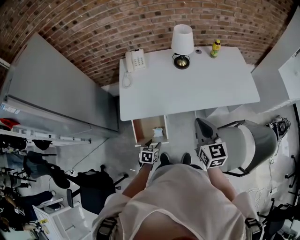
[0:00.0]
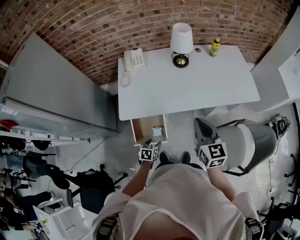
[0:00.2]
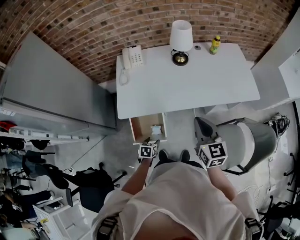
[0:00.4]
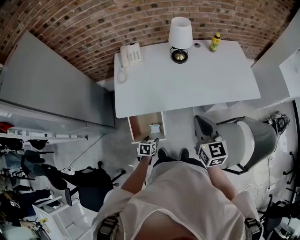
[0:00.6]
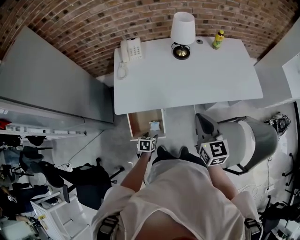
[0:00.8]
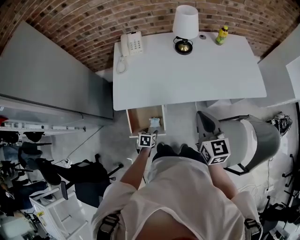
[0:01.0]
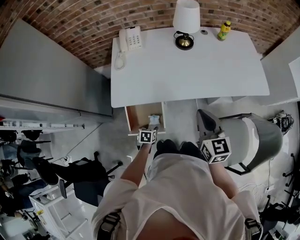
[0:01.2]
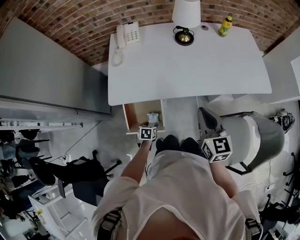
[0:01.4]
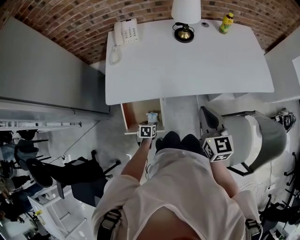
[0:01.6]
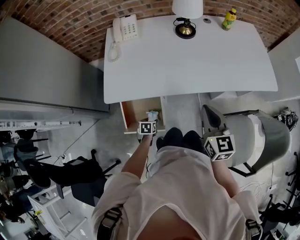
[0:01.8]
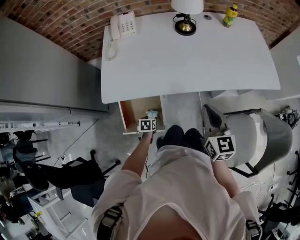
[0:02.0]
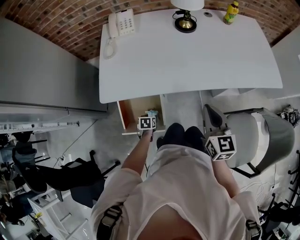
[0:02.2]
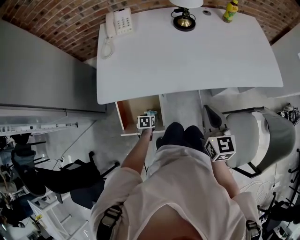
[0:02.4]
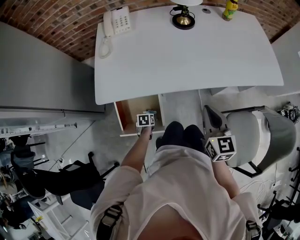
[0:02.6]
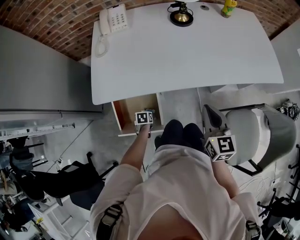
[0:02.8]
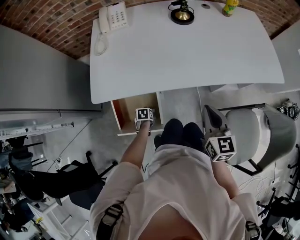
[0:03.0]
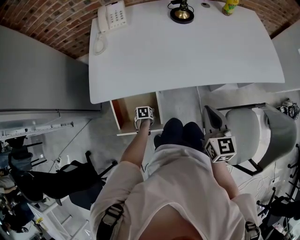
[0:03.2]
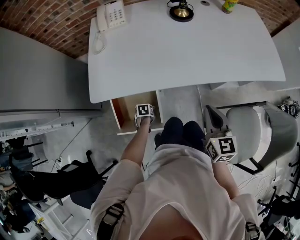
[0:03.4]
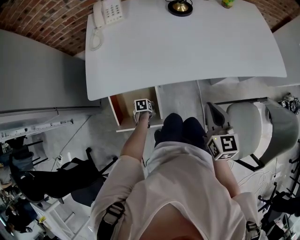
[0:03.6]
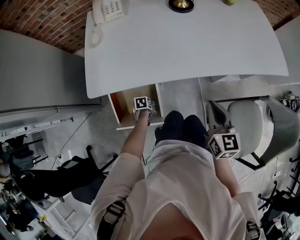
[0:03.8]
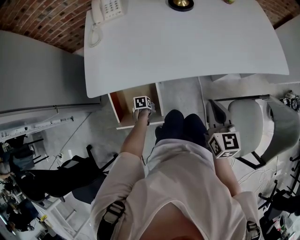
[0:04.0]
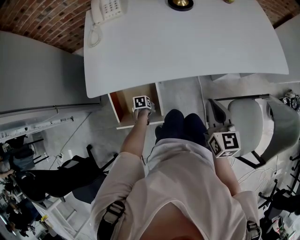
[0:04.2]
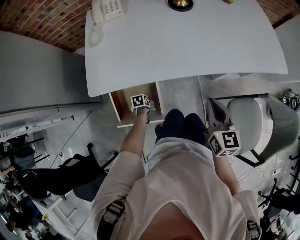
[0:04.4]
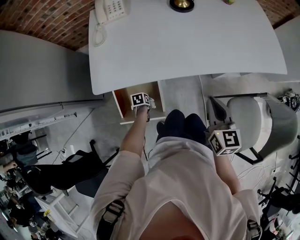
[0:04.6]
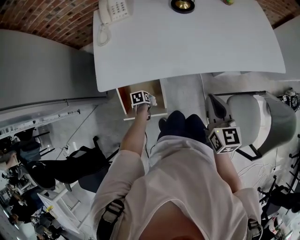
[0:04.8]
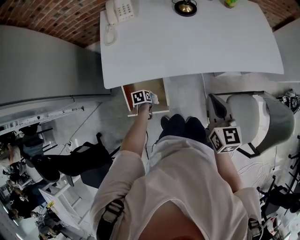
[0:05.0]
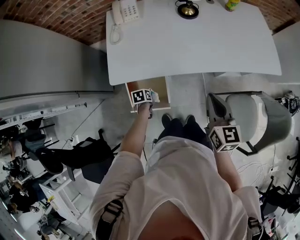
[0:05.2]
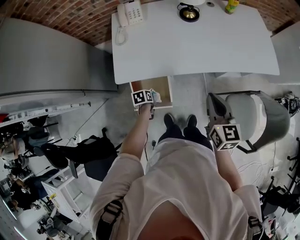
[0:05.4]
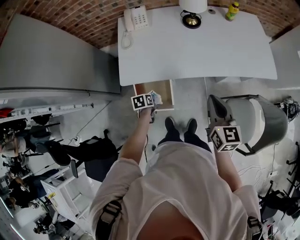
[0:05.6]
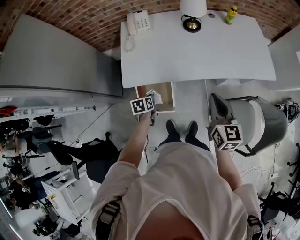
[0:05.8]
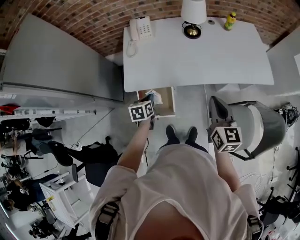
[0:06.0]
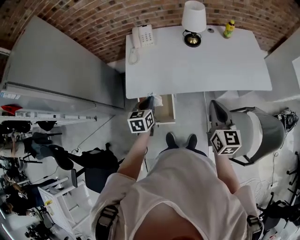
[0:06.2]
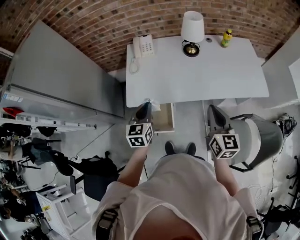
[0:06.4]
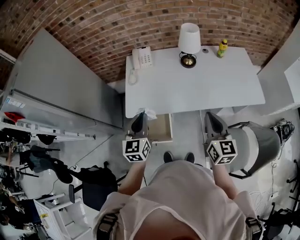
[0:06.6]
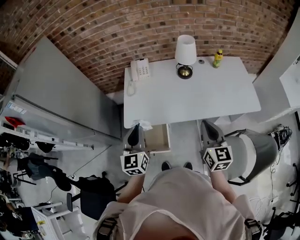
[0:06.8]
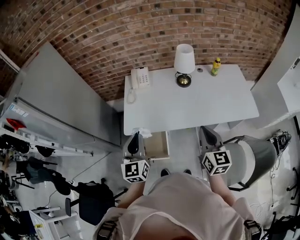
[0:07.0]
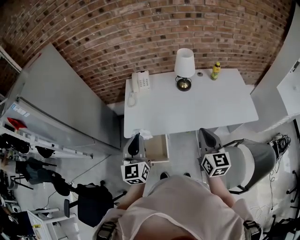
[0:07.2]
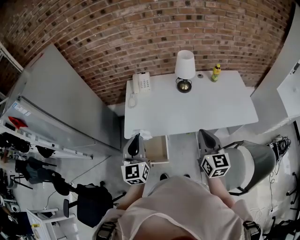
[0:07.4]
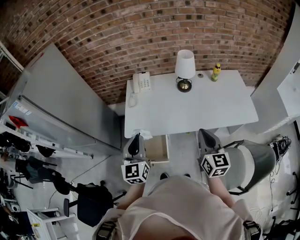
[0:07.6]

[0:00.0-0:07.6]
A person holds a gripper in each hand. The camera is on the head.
0:00.0 to 0:01.6: The grippers both shift downward by roughly 20 cm.
0:01.6 to 0:03.0: The grippers both shift downward by approximately 15 cm.
0:03.0 to 0:04.6: The left gripper closes its fingers.
0:04.6 to 0:06.0: The left gripper moves upward, approximately 40 cm, and swivels about 30 degrees; the right gripper is displaced upward by roughly 25 cm.
0:06.0 to 0:07.6: The right gripper travels upward by about 5 cm. The left gripper travels upward by some 25 cm, and angles its fingers upward, by roughly 40 degrees.

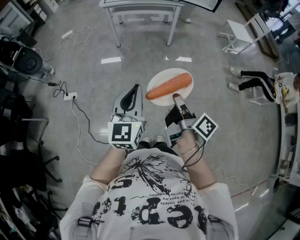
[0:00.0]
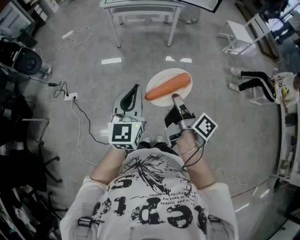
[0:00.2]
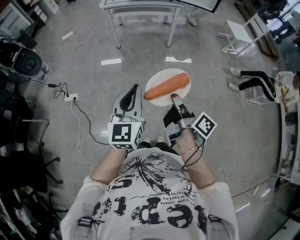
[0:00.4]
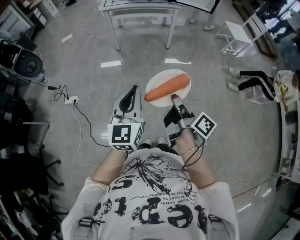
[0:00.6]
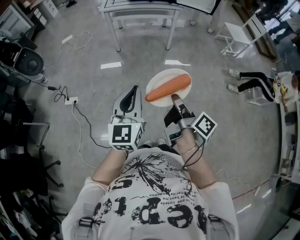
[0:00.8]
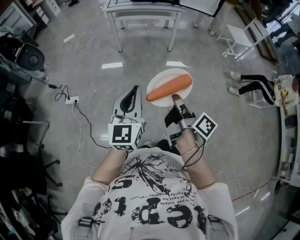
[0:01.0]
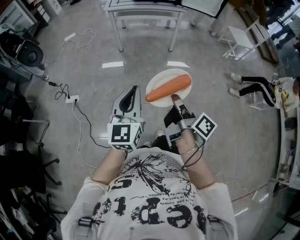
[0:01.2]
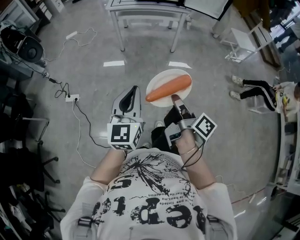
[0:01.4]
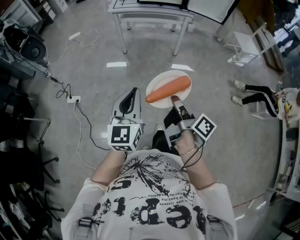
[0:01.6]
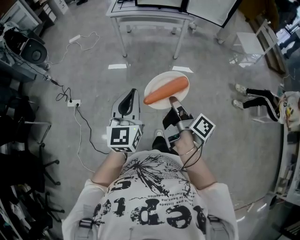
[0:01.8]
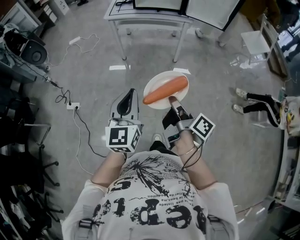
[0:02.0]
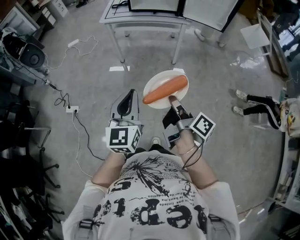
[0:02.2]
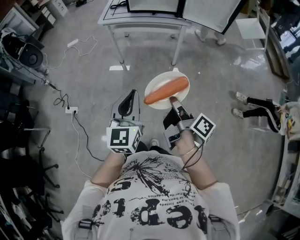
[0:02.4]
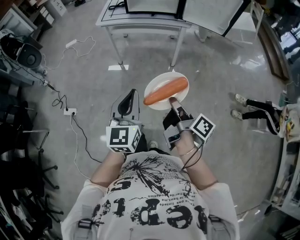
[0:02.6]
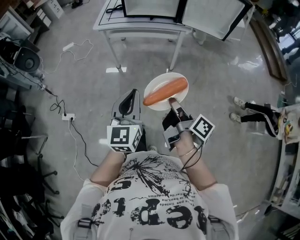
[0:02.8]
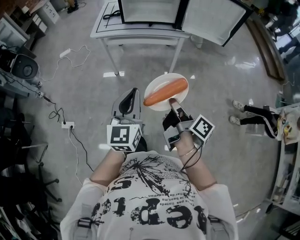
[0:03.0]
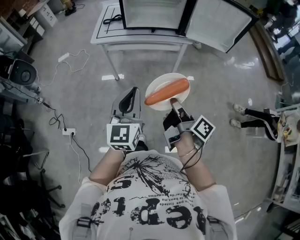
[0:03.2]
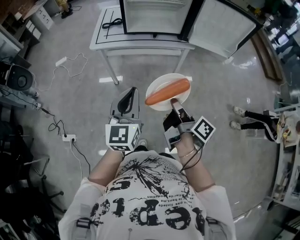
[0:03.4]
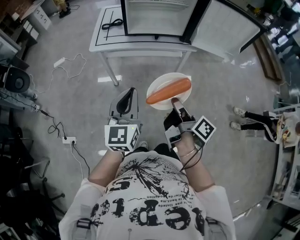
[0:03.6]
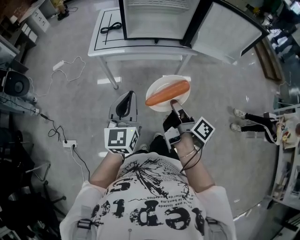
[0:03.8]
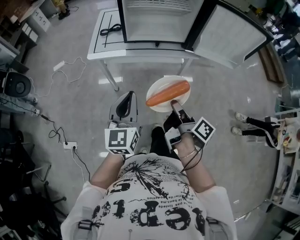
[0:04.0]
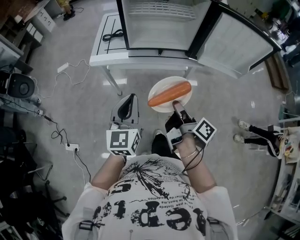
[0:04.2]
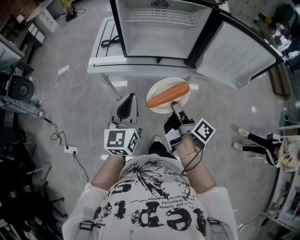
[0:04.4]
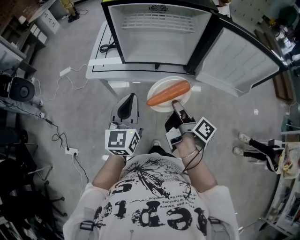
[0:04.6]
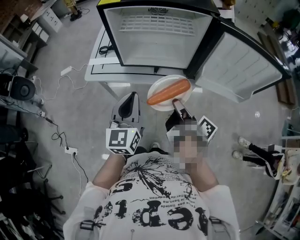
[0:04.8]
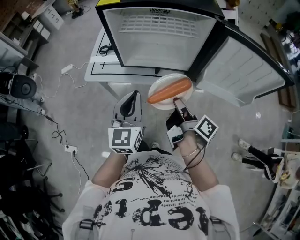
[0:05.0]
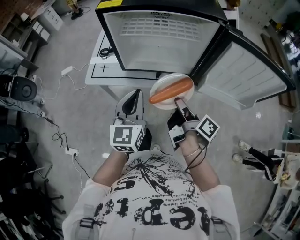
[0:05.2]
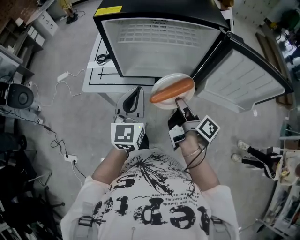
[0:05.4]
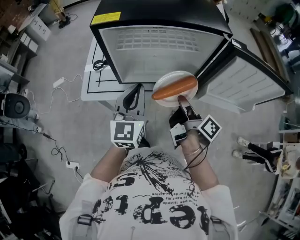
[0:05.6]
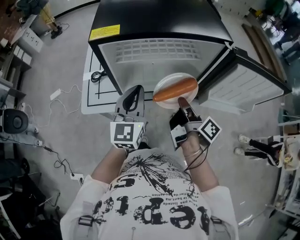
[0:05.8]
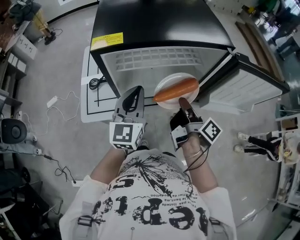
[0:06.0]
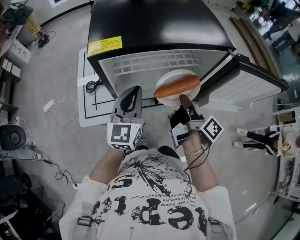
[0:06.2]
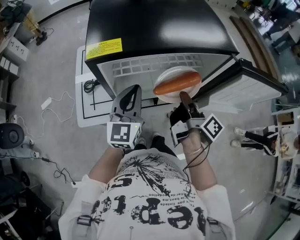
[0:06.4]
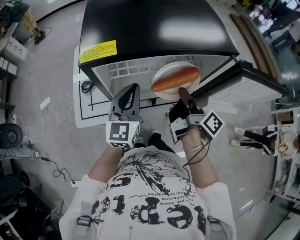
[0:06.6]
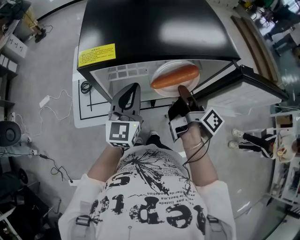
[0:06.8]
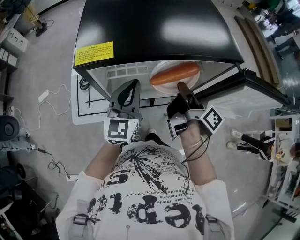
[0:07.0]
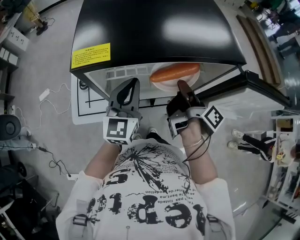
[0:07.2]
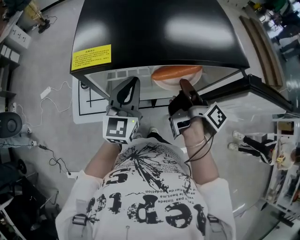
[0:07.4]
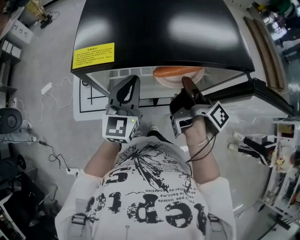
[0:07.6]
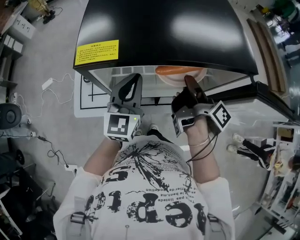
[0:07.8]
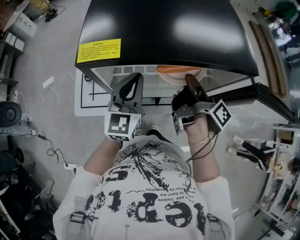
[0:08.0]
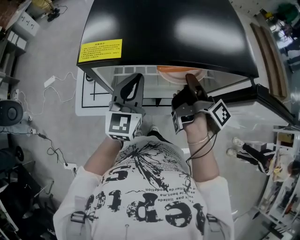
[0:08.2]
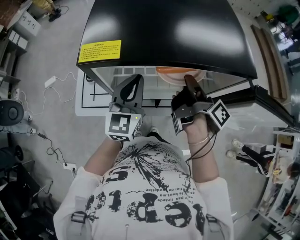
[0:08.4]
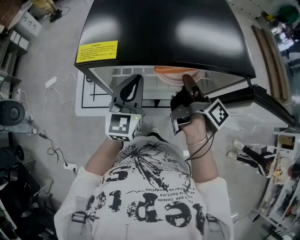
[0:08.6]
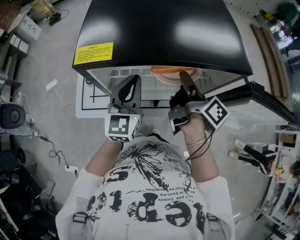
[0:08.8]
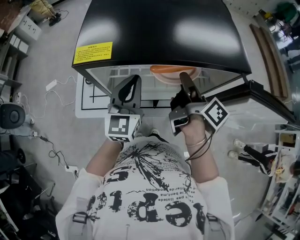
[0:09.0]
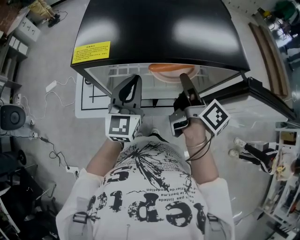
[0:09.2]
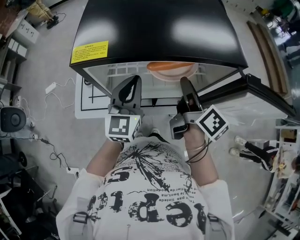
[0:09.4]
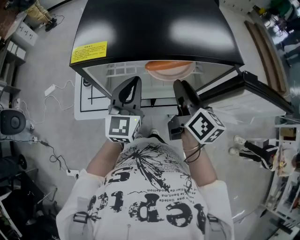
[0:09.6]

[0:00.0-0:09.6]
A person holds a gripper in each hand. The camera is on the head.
0:01.6 to 0:03.2: The left gripper shifts by approximately 40 cm.
0:03.2 to 0:04.8: The left gripper shifts by about 35 cm.
0:04.8 to 0:06.4: The left gripper shifts by approximately 25 cm.

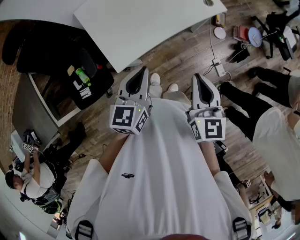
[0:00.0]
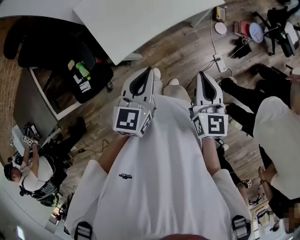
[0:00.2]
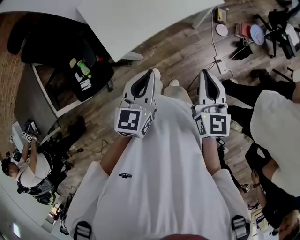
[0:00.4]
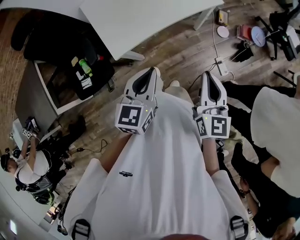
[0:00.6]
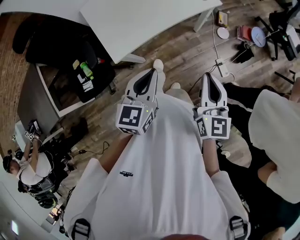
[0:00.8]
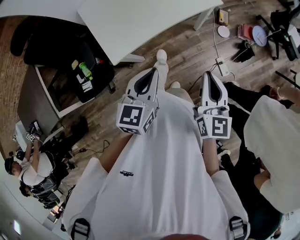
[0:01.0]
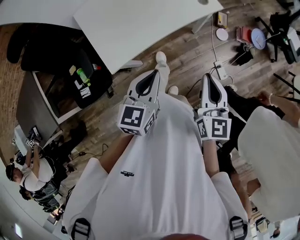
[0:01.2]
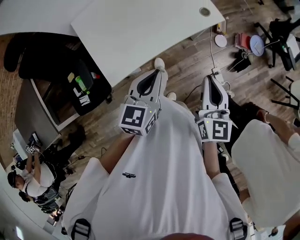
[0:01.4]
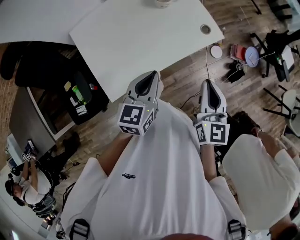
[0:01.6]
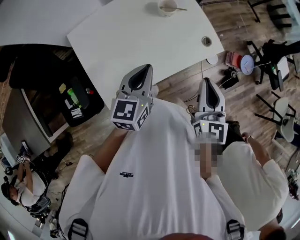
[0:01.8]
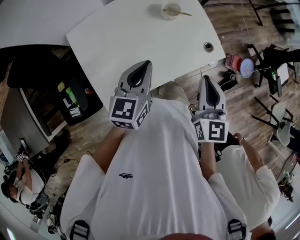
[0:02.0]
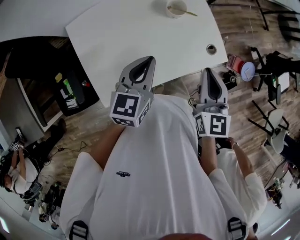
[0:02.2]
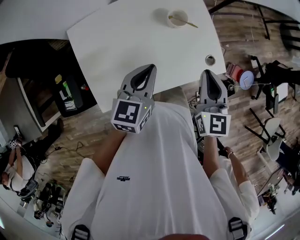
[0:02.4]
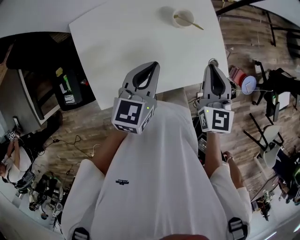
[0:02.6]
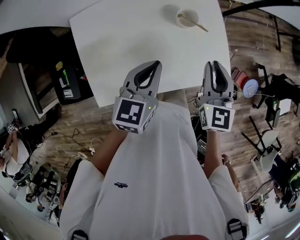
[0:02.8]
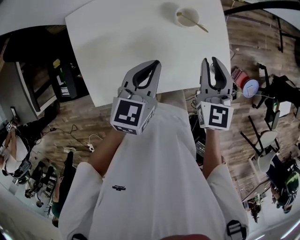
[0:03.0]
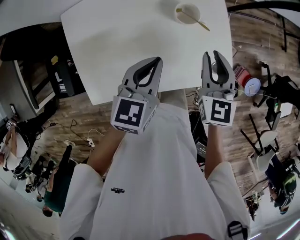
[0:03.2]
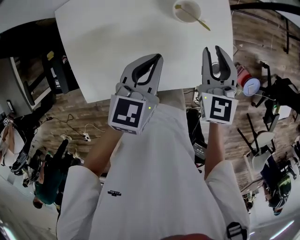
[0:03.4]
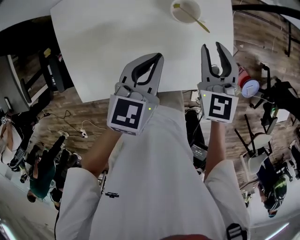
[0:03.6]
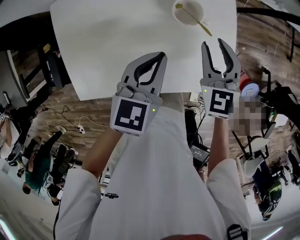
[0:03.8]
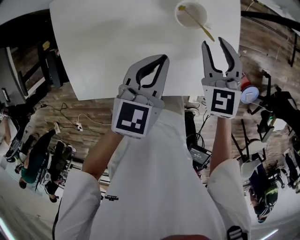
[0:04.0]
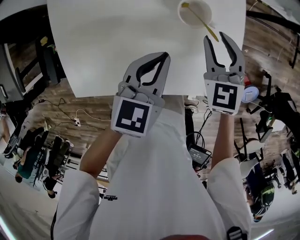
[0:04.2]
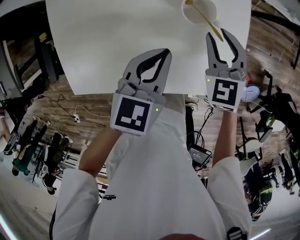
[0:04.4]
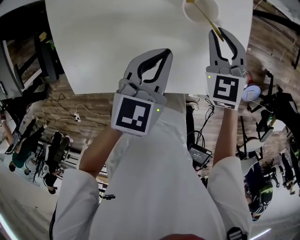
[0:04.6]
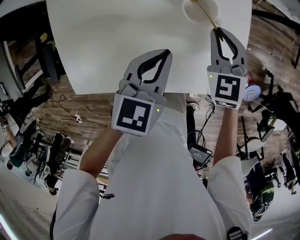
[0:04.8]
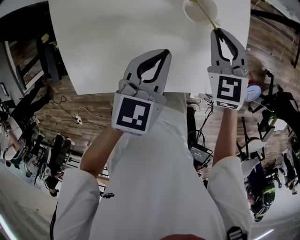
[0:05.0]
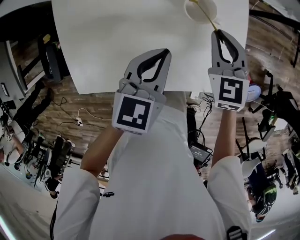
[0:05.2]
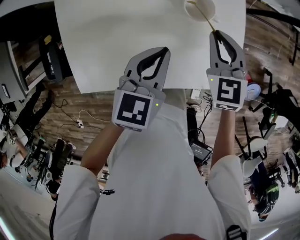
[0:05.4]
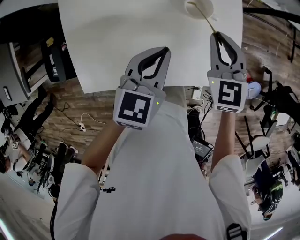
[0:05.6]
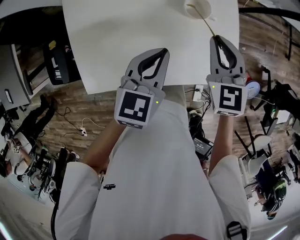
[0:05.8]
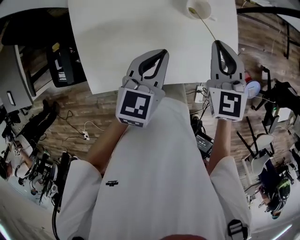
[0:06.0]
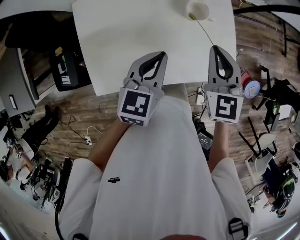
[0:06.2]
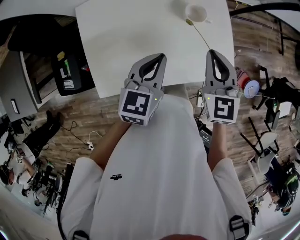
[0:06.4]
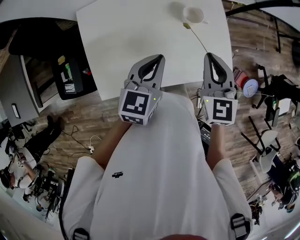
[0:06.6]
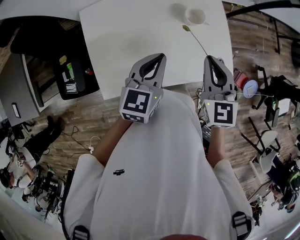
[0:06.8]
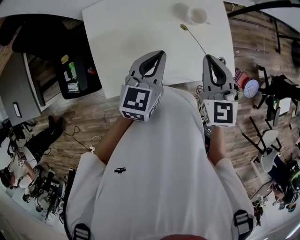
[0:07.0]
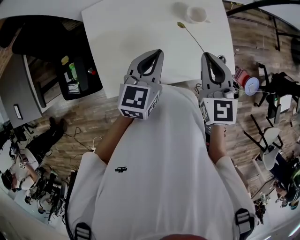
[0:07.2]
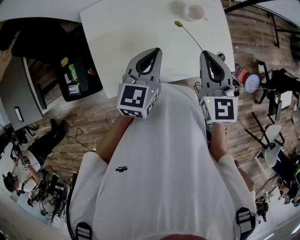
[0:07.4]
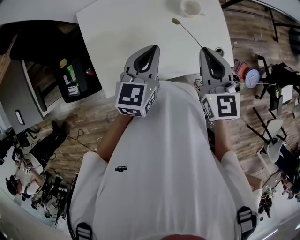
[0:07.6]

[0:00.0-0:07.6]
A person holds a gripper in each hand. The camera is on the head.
0:00.0 to 0:01.6: Both grippers travel together forward and to the right, roughly 15 cm.
0:01.6 to 0:03.0: The grippers both shift forward by roughly 25 cm. The right gripper turns by some 30 degrees.
0:03.0 to 0:04.6: The right gripper travels downward and forward by roughly 20 cm, and changes its angle by some 30 degrees, while the left gripper shifts about 10 cm downward.
0:04.6 to 0:06.0: The left gripper moves upward, some 10 cm; the right gripper travels upward and backward by some 15 cm.
0:06.0 to 0:07.6: The right gripper goes some 10 cm backward and upward, while the left gripper is displaced upward and to the left by some 10 cm.
